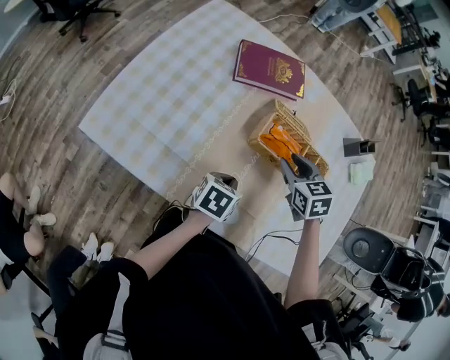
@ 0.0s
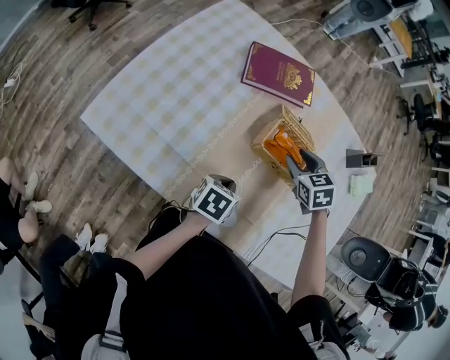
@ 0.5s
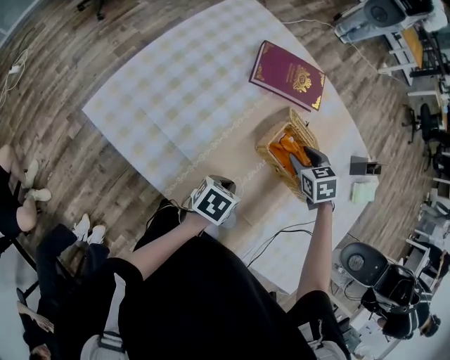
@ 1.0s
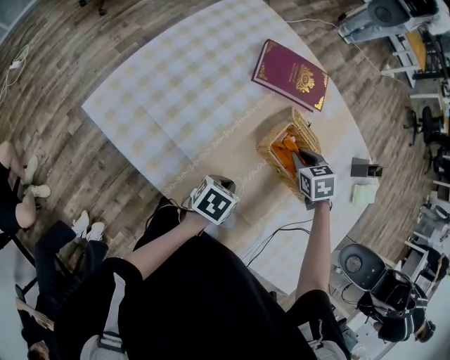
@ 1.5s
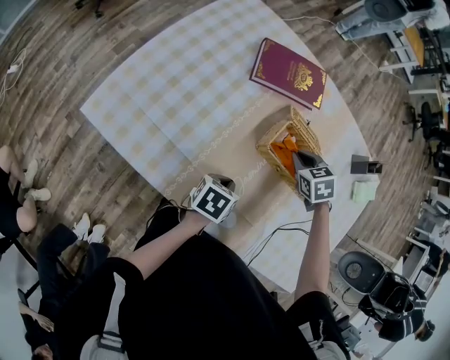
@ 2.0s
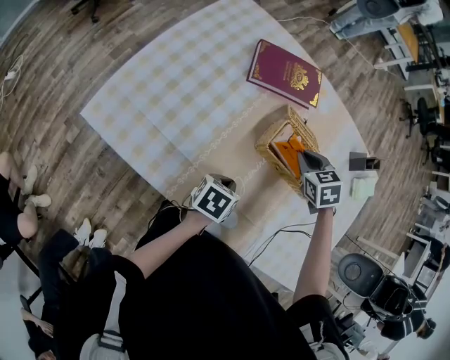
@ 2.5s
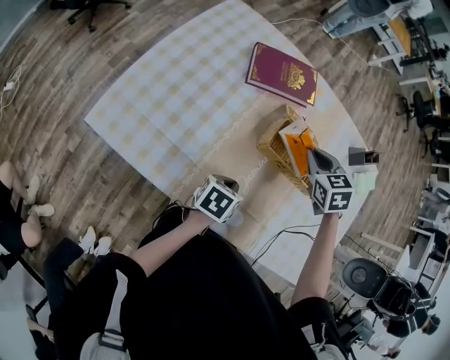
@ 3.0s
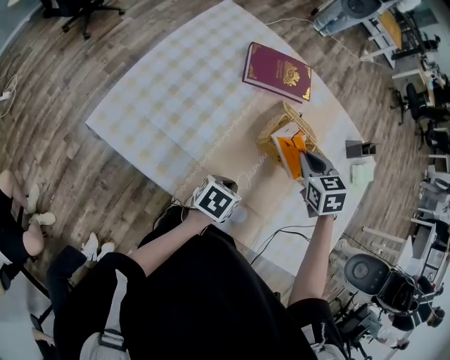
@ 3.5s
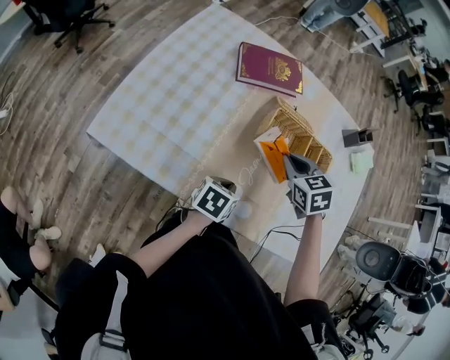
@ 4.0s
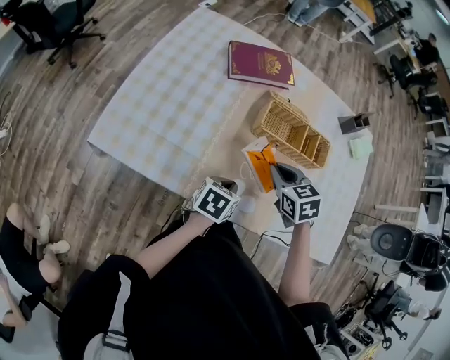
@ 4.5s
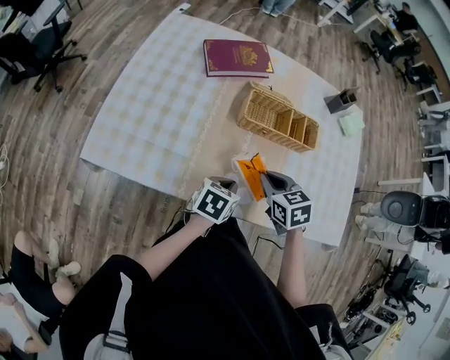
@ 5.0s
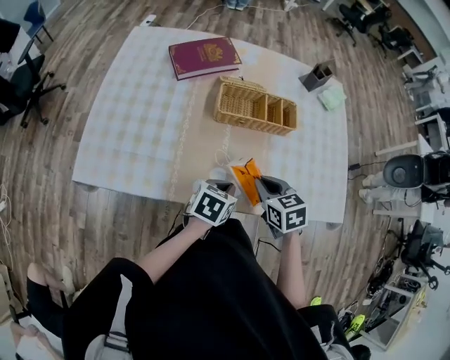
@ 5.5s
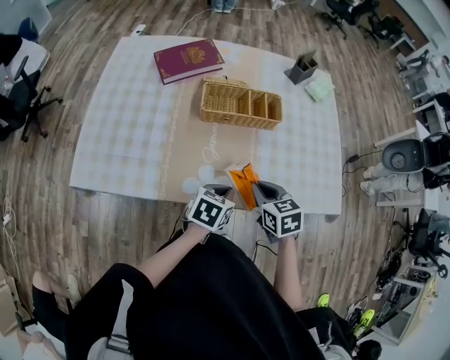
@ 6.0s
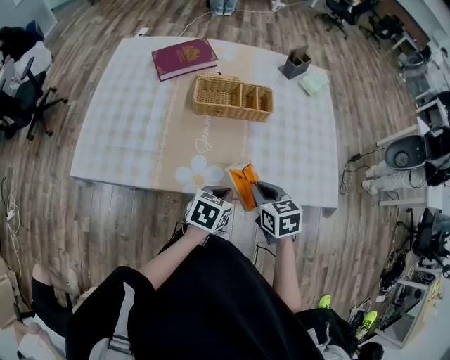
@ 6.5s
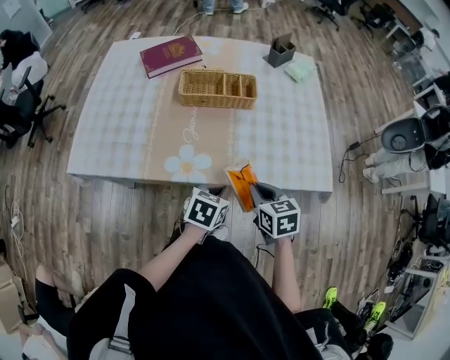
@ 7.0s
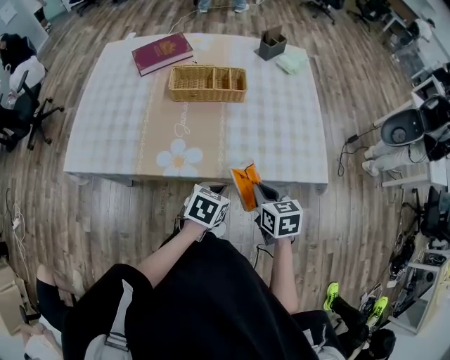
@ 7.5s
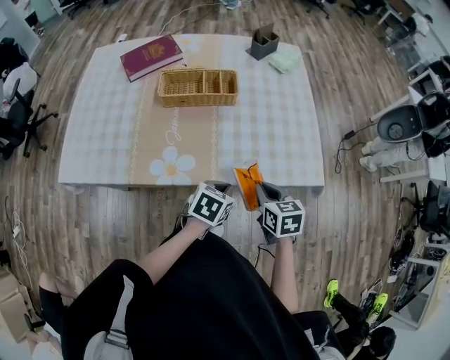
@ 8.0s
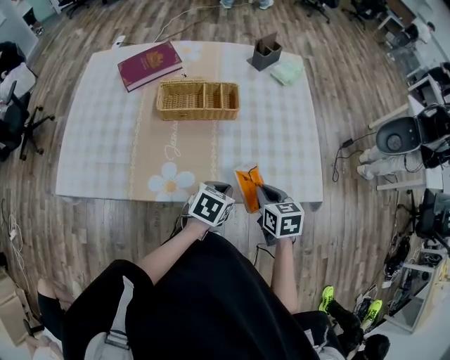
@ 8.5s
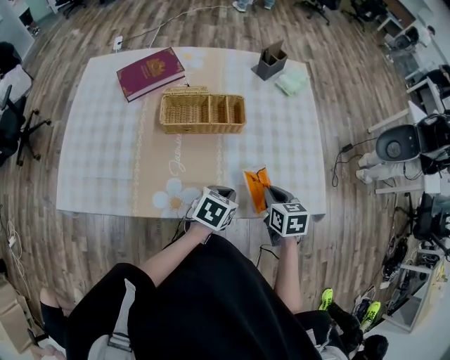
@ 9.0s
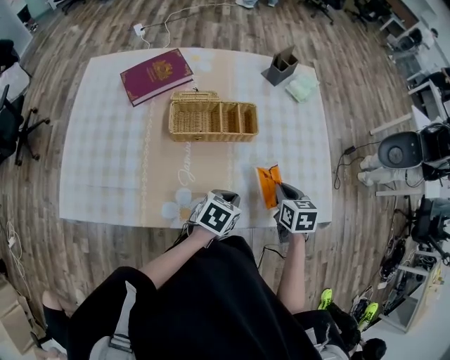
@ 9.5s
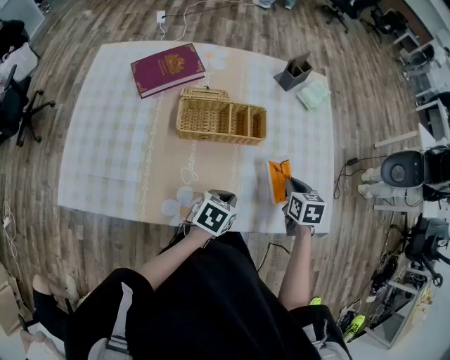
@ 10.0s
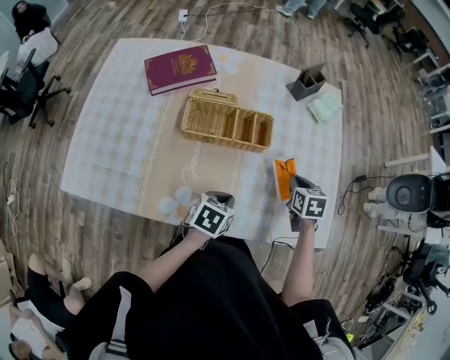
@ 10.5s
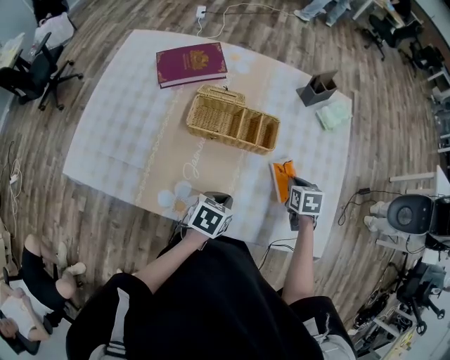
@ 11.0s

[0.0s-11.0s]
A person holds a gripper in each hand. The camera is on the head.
0.0s to 2.0s: The right gripper travels downward and forward by about 10 cm, and closes.
2.0s to 3.5s: The right gripper shifts some 10 cm upward and backward.
3.5s to 5.5s: The left gripper goes roughly 10 cm to the right and backward, and swivels some 20 degrees; the right gripper goes approximately 20 cm backward, and swivels roughly 30 degrees.
5.5s to 7.5s: Both grippers travel together to the right and backward, about 20 cm.
7.5s to 9.0s: Both grippers move forward, approximately 15 cm.
9.0s to 11.0s: The left gripper is displaced to the left by about 5 cm. The right gripper is displaced forward by about 15 cm.

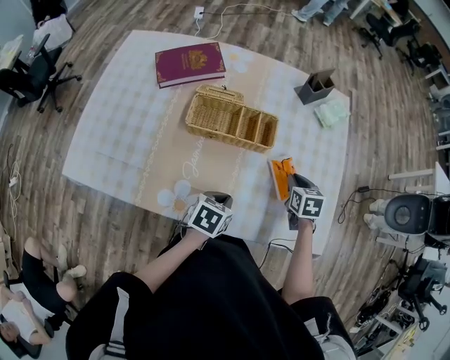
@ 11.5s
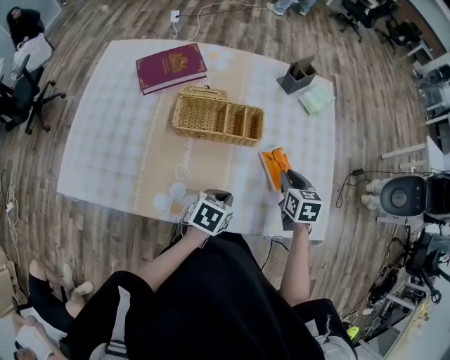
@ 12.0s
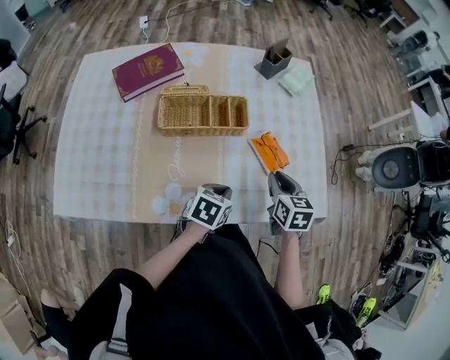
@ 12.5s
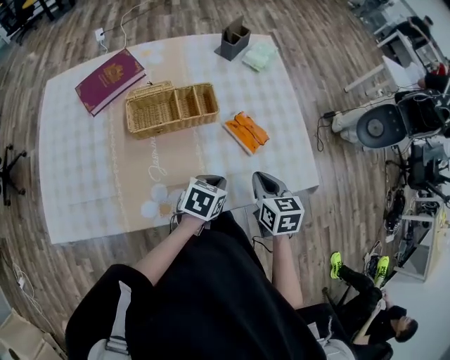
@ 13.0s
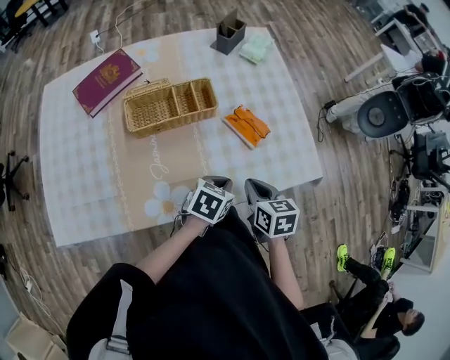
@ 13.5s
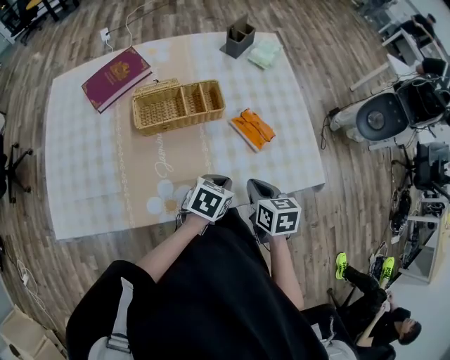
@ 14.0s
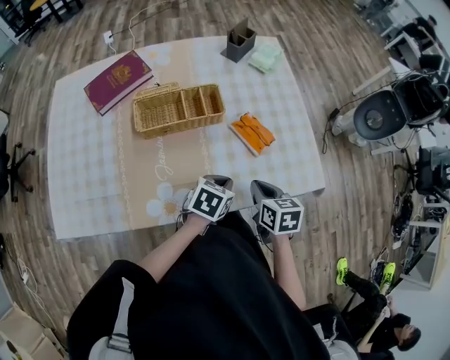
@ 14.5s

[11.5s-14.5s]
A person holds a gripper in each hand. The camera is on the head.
11.5s to 13.0s: The right gripper moves backward, roughly 15 cm, and turns by approximately 20 degrees. The left gripper moves to the right, approximately 5 cm, and swivels roughly 20 degrees.
13.0s to 14.5s: There are only small adjustments of the grippers.

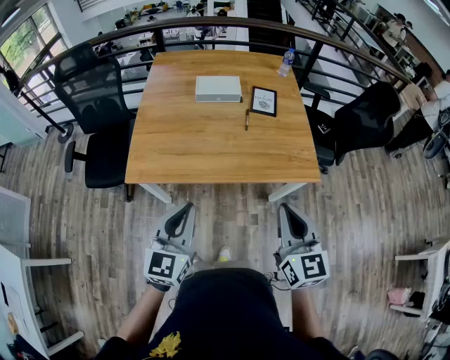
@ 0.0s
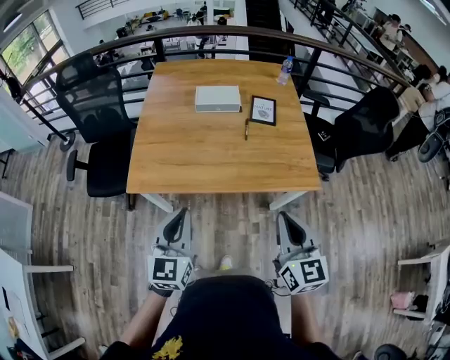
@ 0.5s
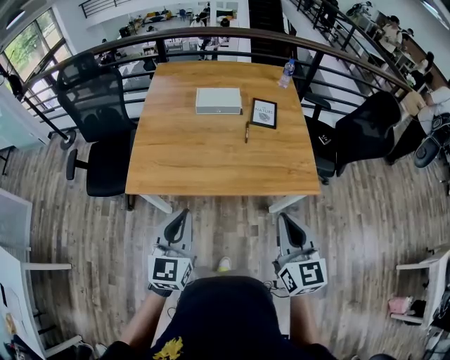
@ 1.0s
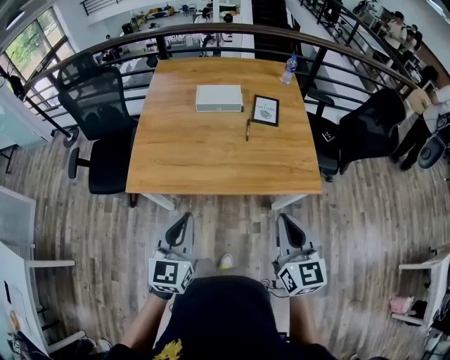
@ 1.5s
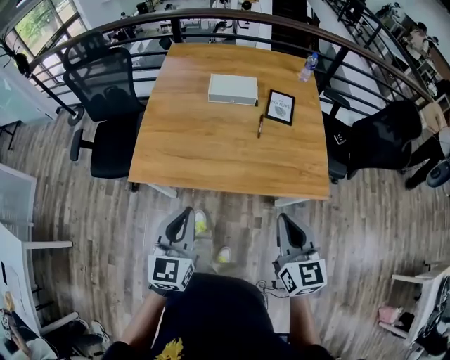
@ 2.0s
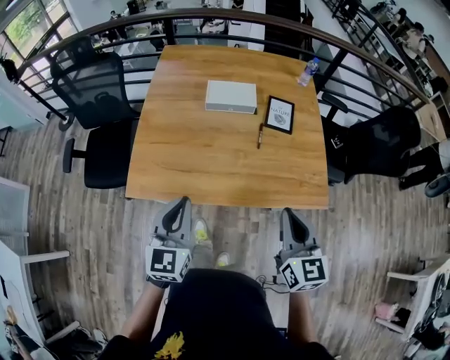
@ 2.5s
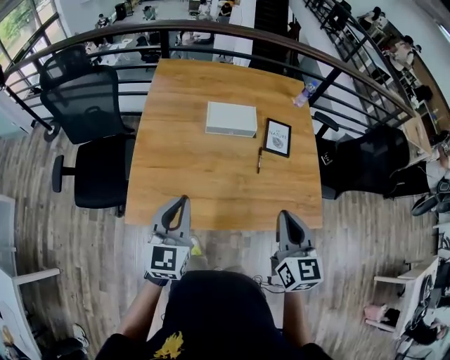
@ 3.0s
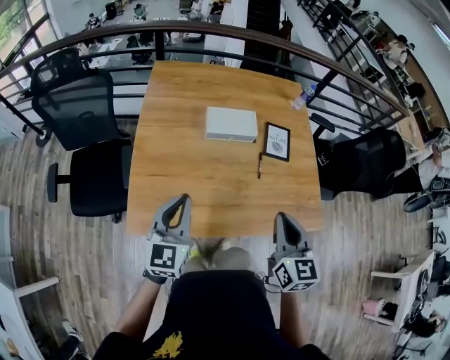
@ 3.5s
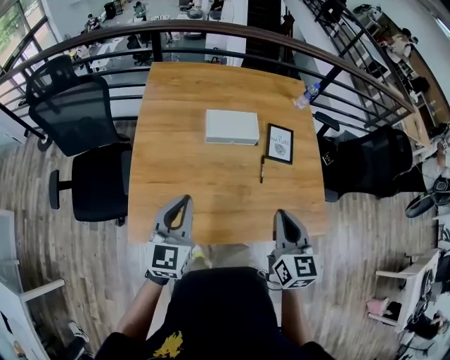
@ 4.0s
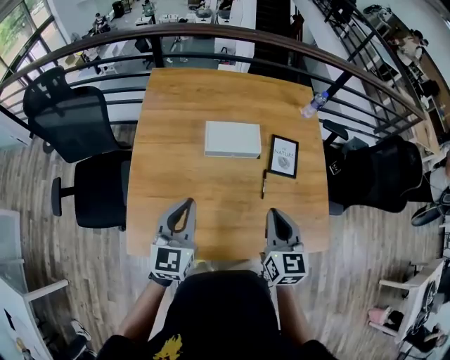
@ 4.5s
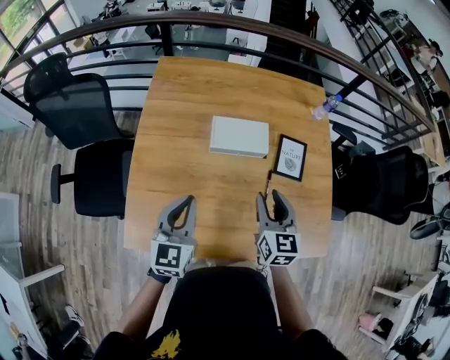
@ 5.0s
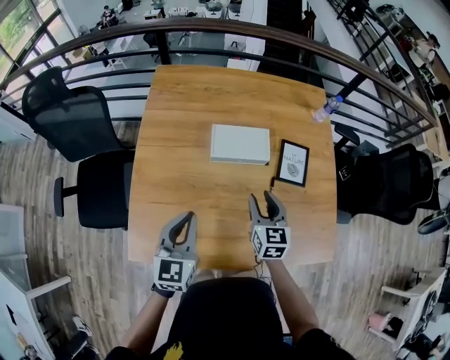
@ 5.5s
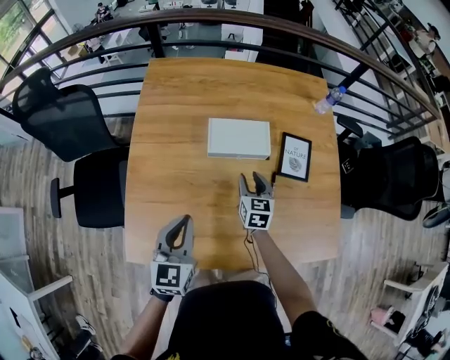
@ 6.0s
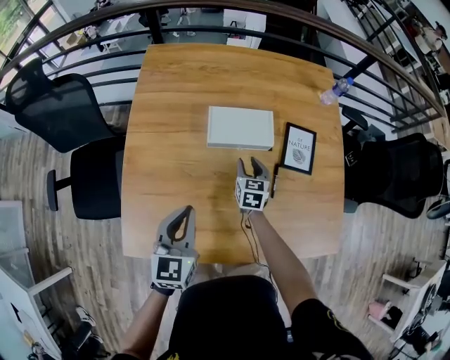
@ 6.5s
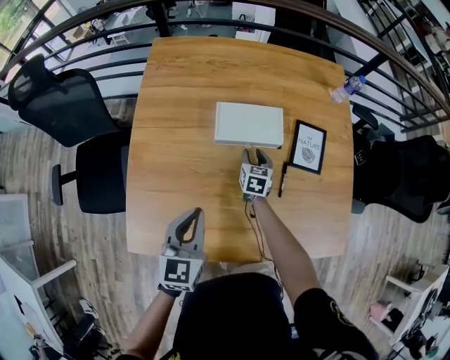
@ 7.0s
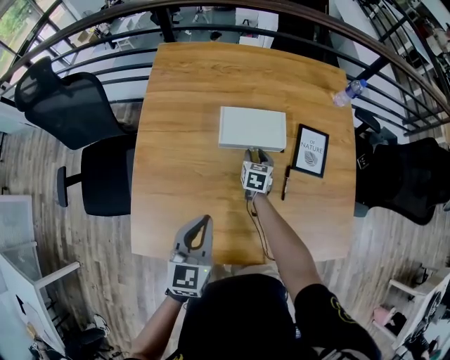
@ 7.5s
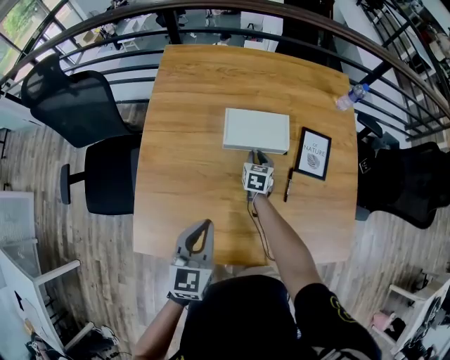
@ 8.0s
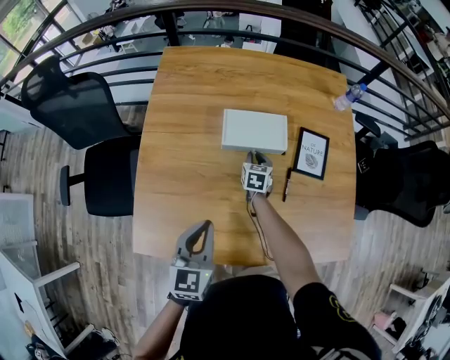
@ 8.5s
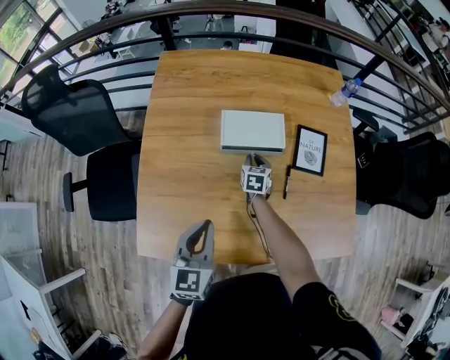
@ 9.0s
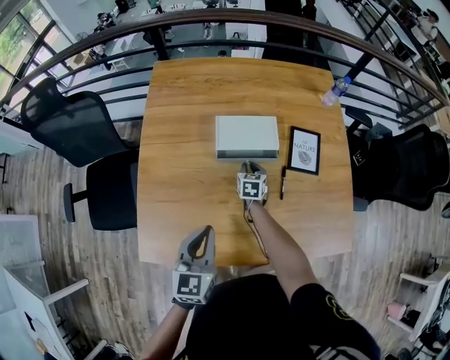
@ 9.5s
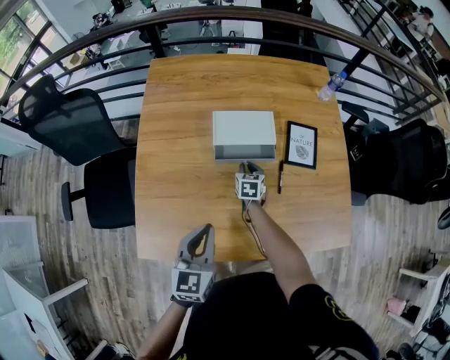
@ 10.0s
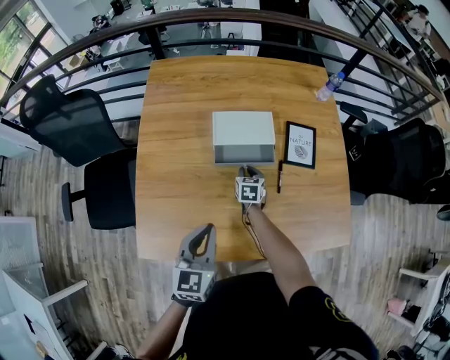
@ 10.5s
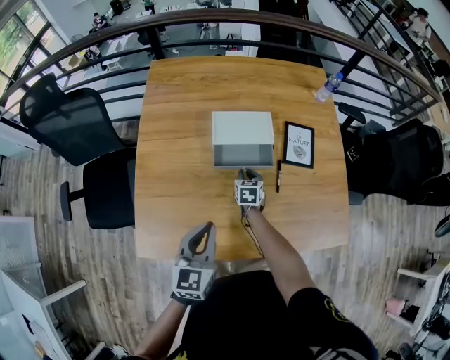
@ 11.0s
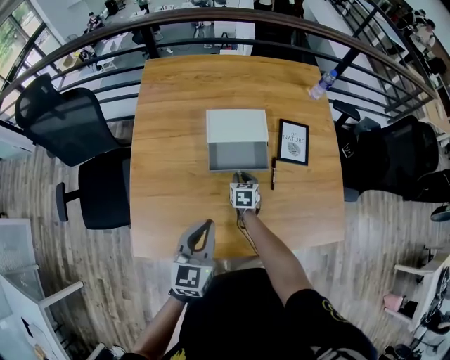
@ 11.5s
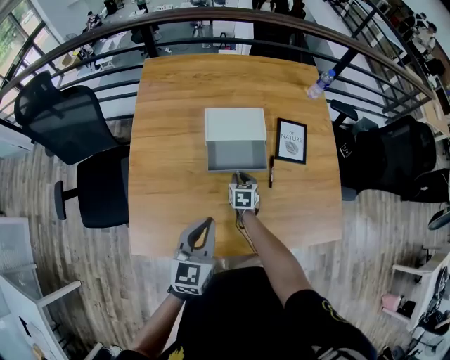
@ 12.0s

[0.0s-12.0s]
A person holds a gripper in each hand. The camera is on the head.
0.0s to 2.0s: The grippers both shift forward by some 5 cm.
2.0s to 4.0s: The grippers both shift forward and to the left by approximately 30 cm.
4.0s to 6.0s: The right gripper goes some 35 cm forward and downward, and opens; the left gripper goes roughly 15 cm forward and downward.
6.0s to 8.0s: The right gripper moves downward and forward, roughly 15 cm, and closes up.
8.0s to 10.0s: The right gripper moves backward, roughly 5 cm.
10.0s to 12.0s: The right gripper shifts about 5 cm backward.

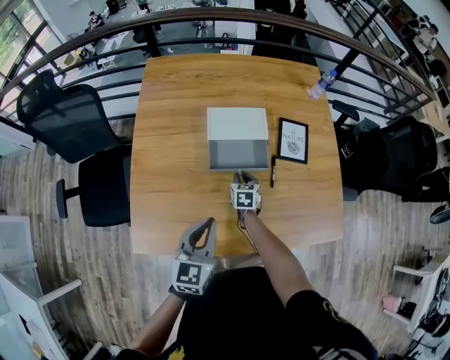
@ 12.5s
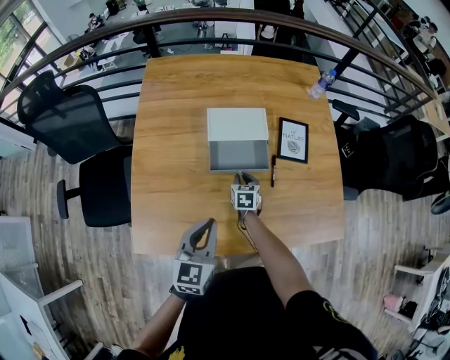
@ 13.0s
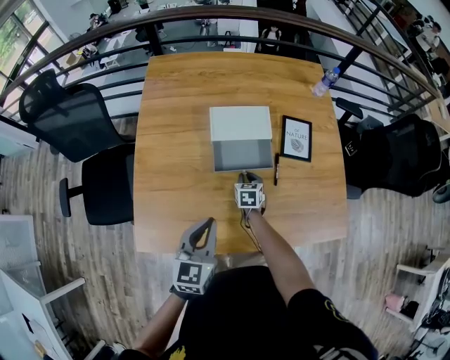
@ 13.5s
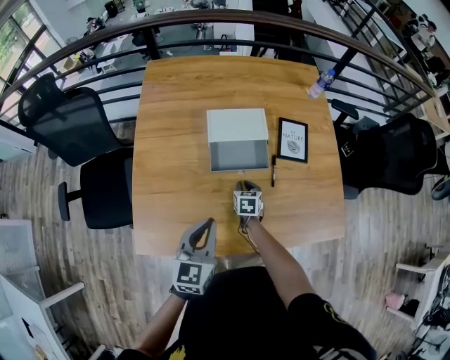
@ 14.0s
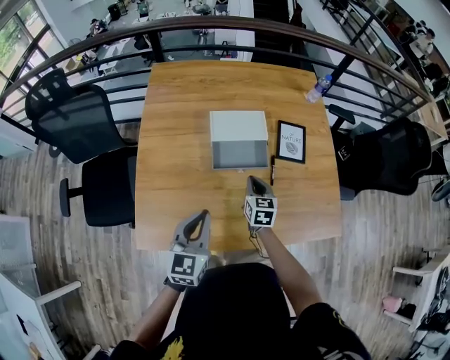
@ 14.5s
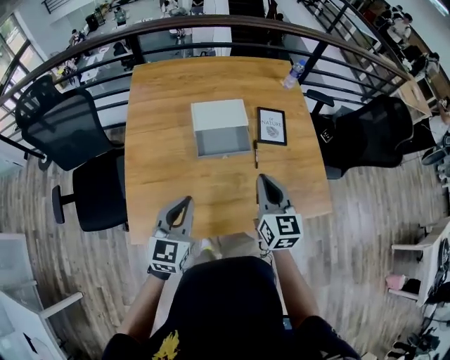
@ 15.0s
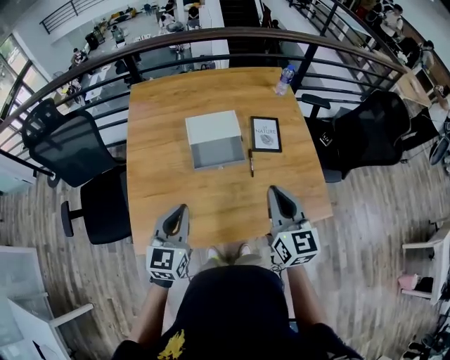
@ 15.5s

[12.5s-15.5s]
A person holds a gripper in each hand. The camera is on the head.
12.5s to 14.0s: The grippers make only small movements.
14.0s to 15.5s: The left gripper is displaced upward by about 10 cm. The right gripper heads upward and backward, covering about 40 cm, and tips its fingers upward by some 40 degrees.
